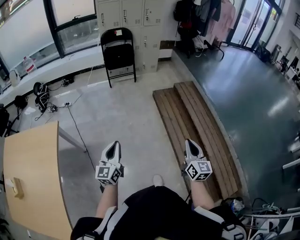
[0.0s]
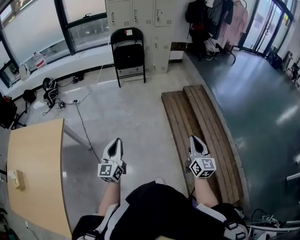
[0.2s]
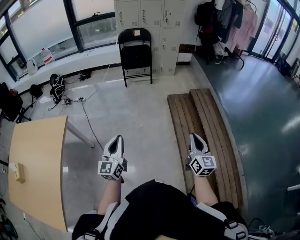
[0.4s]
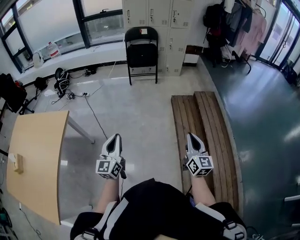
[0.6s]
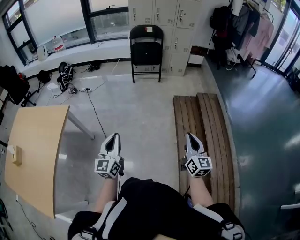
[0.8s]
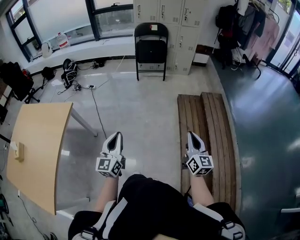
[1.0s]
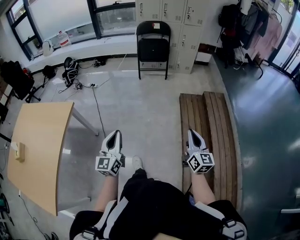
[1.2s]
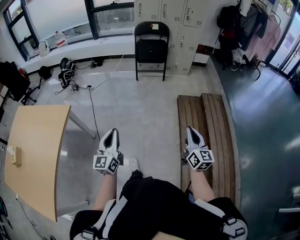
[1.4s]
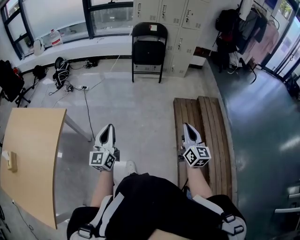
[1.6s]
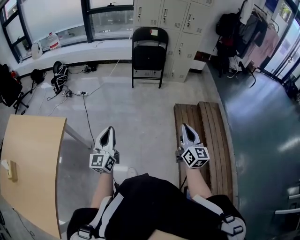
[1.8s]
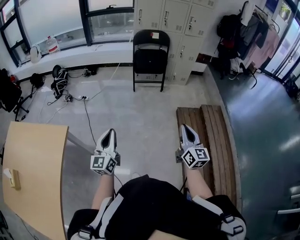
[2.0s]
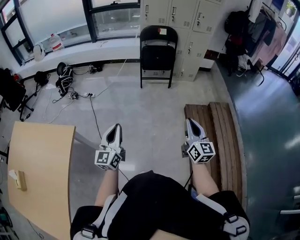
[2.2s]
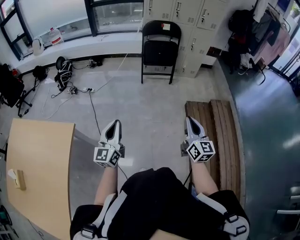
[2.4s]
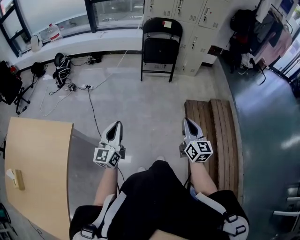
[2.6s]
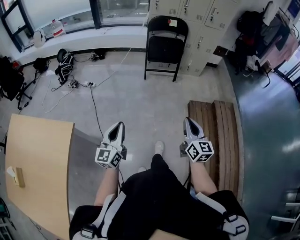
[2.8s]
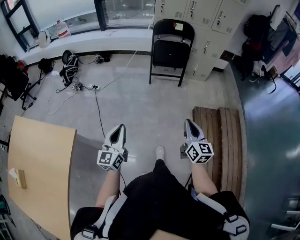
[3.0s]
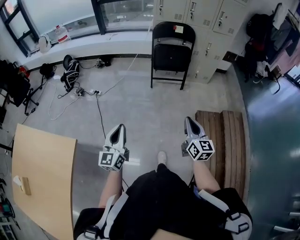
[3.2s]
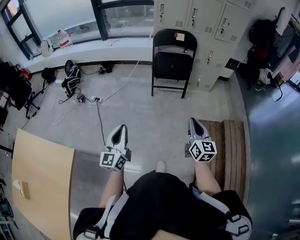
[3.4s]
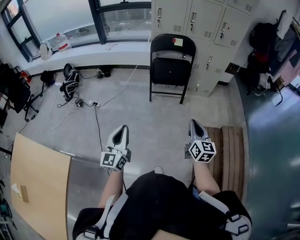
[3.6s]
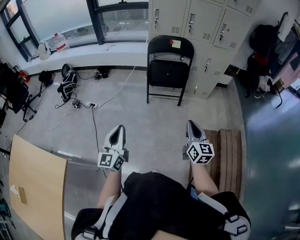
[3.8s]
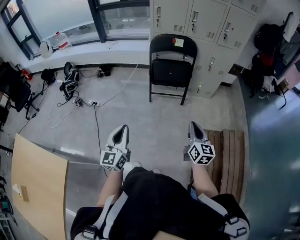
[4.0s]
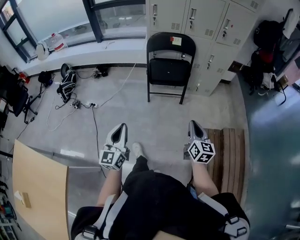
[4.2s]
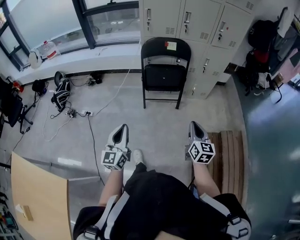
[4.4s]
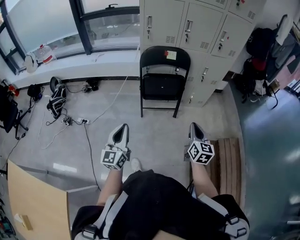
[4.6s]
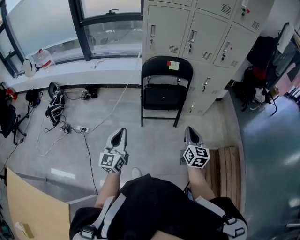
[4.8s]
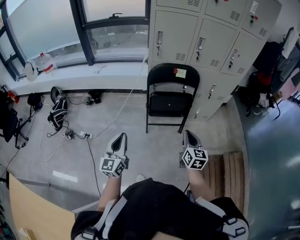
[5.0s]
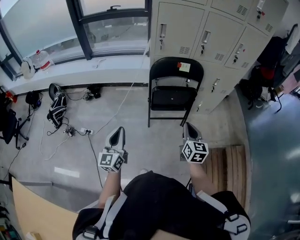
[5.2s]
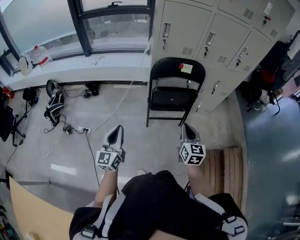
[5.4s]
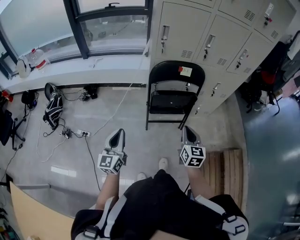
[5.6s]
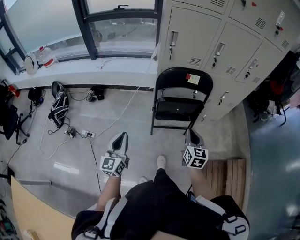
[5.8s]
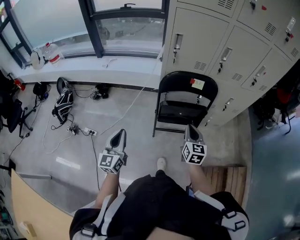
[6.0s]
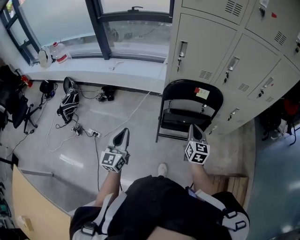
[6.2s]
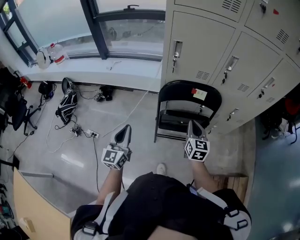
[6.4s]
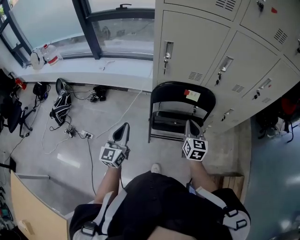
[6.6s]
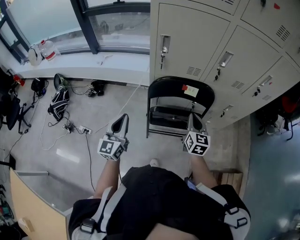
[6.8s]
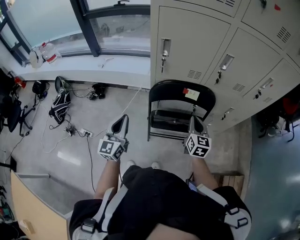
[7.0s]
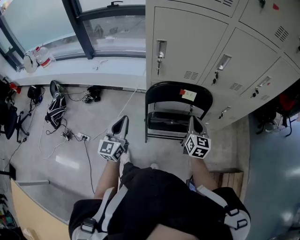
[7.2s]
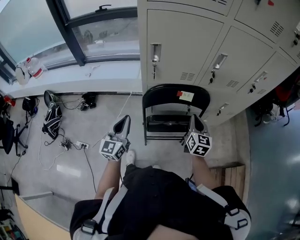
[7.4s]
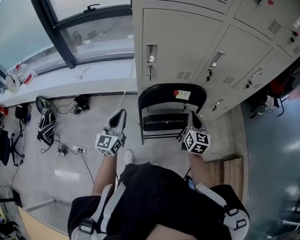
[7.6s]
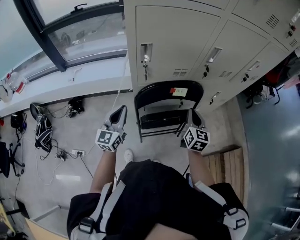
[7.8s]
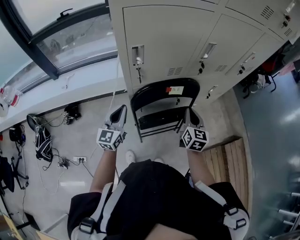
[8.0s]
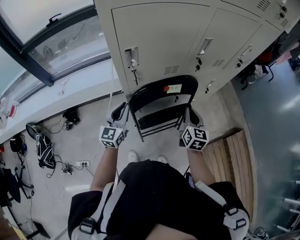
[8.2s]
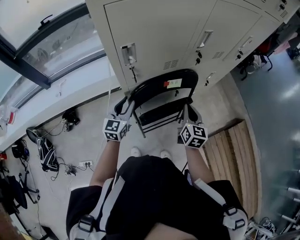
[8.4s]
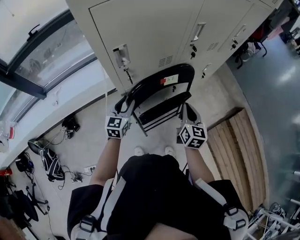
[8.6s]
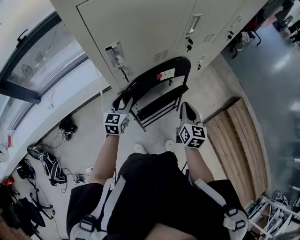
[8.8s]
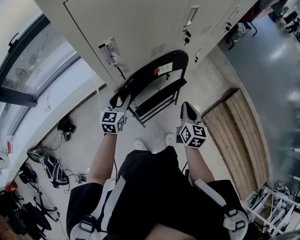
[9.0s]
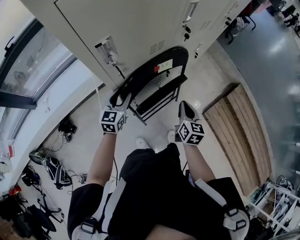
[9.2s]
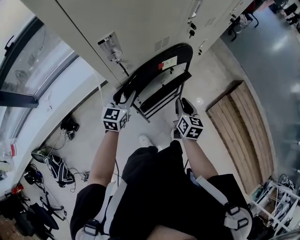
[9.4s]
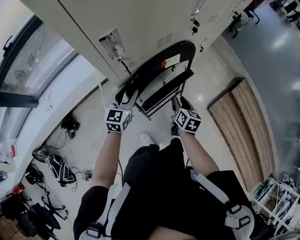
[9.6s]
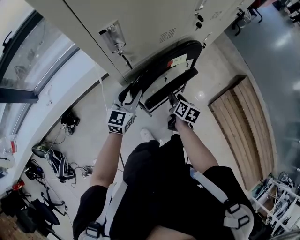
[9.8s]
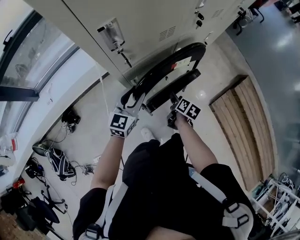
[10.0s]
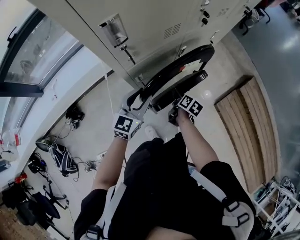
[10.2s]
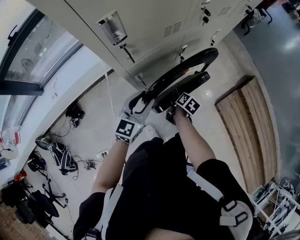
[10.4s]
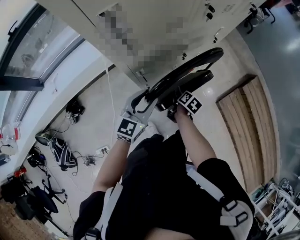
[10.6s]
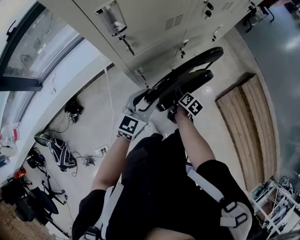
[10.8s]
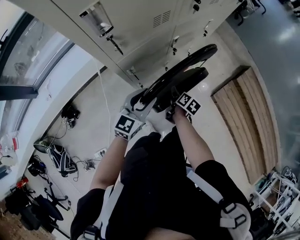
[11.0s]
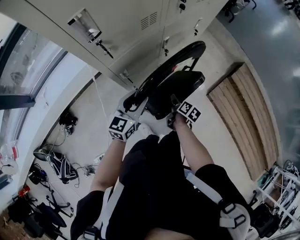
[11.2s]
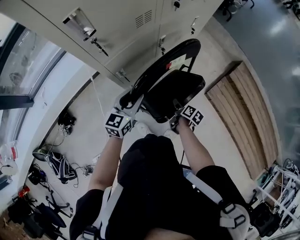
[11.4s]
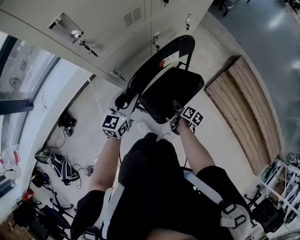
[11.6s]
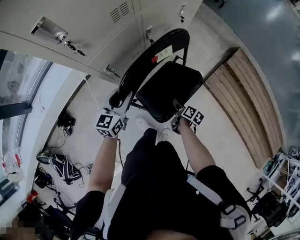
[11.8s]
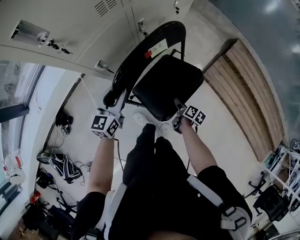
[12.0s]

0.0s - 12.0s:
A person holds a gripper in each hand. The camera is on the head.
0.0s - 1.6s: The left gripper is displaced forward by some 15 cm. Meanwhile the right gripper goes roughly 25 cm forward.
1.6s - 3.0s: The grippers both shift forward and to the left by about 25 cm.
3.0s - 4.4s: The grippers both shift forward by about 35 cm.
4.4s - 6.0s: Both grippers travel together forward and to the left, roughly 35 cm.
6.0s - 7.6s: The right gripper is displaced forward and to the right by about 20 cm. The left gripper moves forward, roughly 25 cm.
7.6s - 9.0s: The left gripper changes place by approximately 20 cm, rotates roughly 40 degrees, and opens its fingers. The right gripper moves downward, about 5 cm, and swivels roughly 30 degrees.
9.0s - 10.4s: The left gripper is displaced to the right and backward by some 10 cm, while the right gripper goes roughly 20 cm downward, swivels about 50 degrees, and opens its fingers.
10.4s - 12.0s: The left gripper shifts some 5 cm downward. The right gripper is displaced to the right, backward and downward by approximately 25 cm.

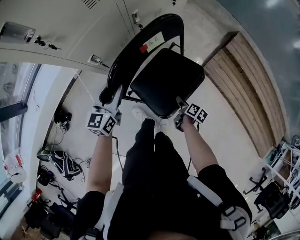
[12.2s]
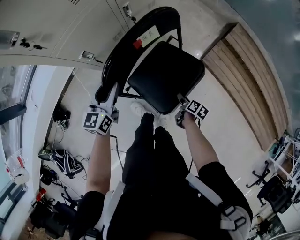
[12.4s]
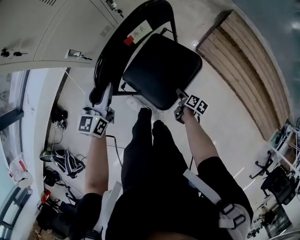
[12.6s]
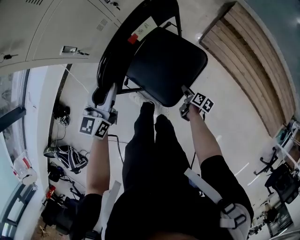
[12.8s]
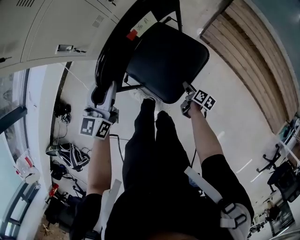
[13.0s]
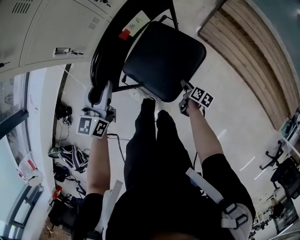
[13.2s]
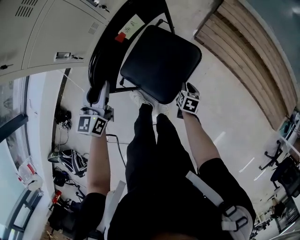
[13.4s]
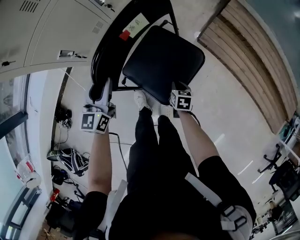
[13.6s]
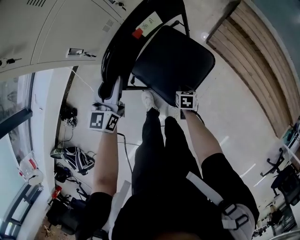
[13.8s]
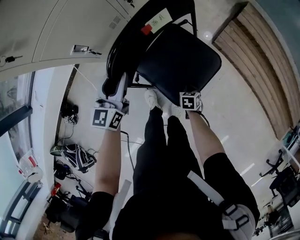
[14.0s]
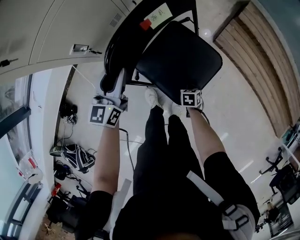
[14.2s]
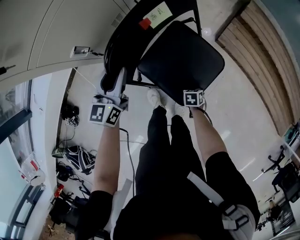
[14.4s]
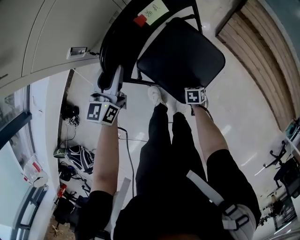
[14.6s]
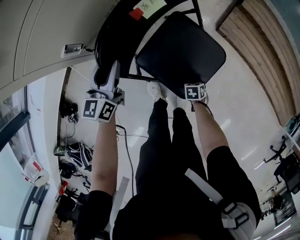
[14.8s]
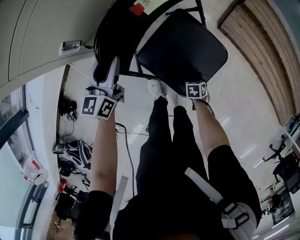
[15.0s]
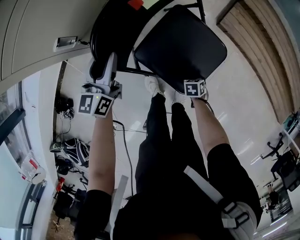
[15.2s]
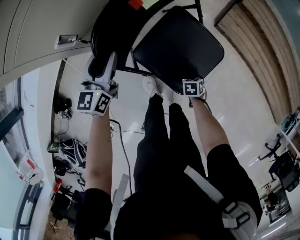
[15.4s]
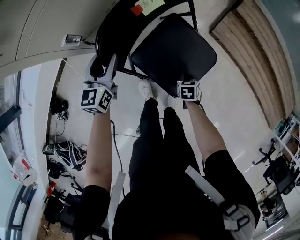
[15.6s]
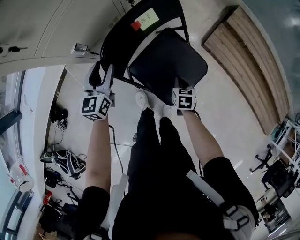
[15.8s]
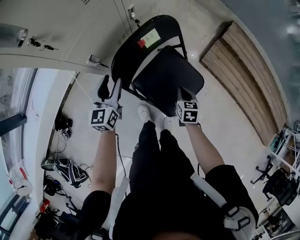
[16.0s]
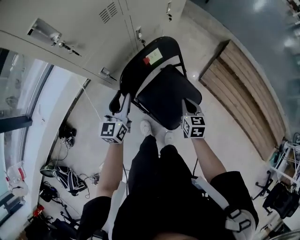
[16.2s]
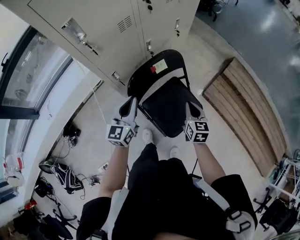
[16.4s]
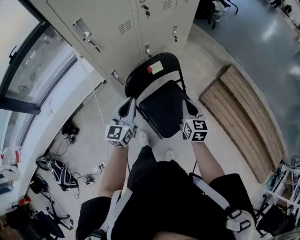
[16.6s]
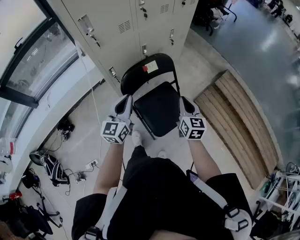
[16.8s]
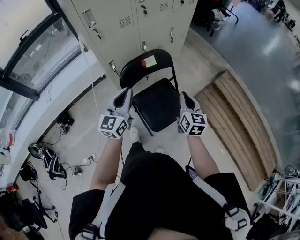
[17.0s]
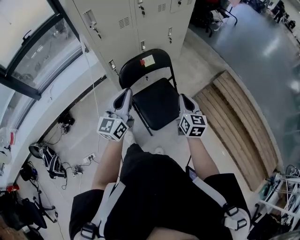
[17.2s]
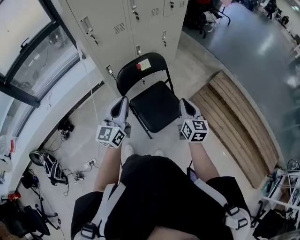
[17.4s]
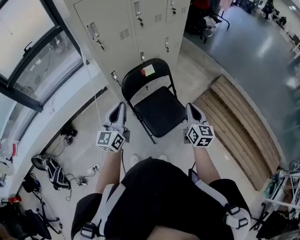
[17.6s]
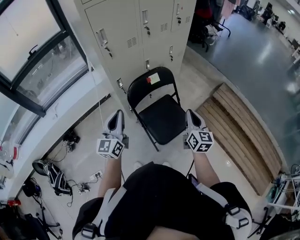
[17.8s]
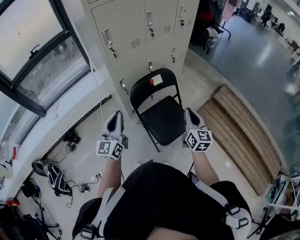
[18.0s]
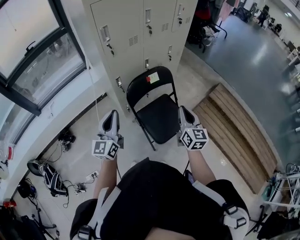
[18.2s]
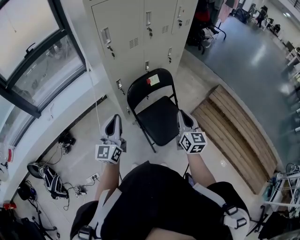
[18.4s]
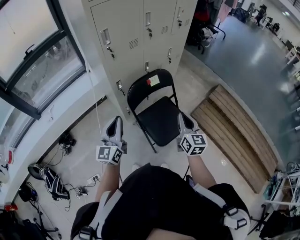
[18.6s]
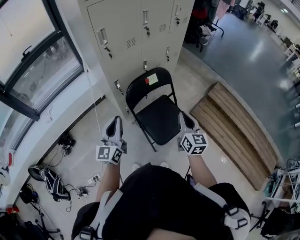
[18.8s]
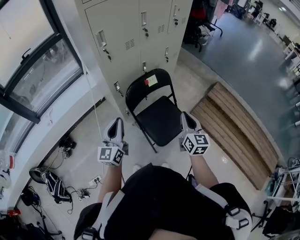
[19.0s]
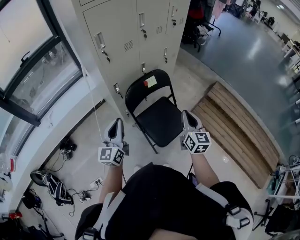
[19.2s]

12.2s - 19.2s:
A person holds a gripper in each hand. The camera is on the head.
12.2s - 13.6s: The right gripper reaches some 10 cm to the right, then returns, changes its angle by some 40 degrees, and closes; the left gripper travels to the right by roughly 5 cm.
13.6s - 15.0s: The right gripper goes roughly 15 cm downward, and swivels some 30 degrees, while the left gripper ends up approximately 15 cm from where it was.
15.0s - 16.4s: The left gripper shifts roughly 20 cm upward, and closes; the right gripper goes some 40 cm upward, and tilts its fingers approximately 50 degrees upward.
16.4s - 17.8s: The right gripper shifts some 20 cm upward and backward, and changes its angle by roughly 20 degrees, while the left gripper goes about 20 cm backward and upward.

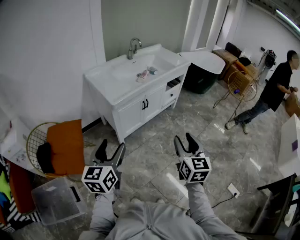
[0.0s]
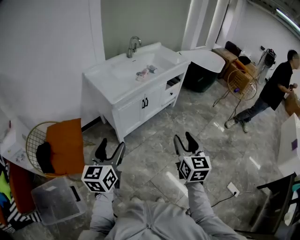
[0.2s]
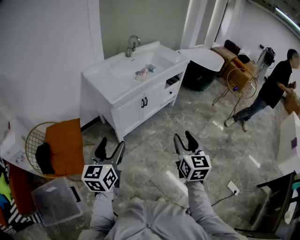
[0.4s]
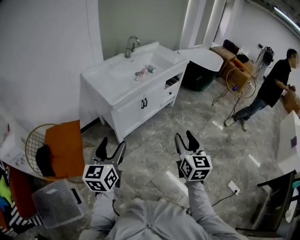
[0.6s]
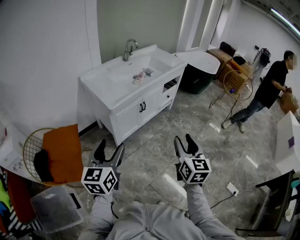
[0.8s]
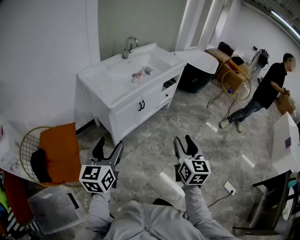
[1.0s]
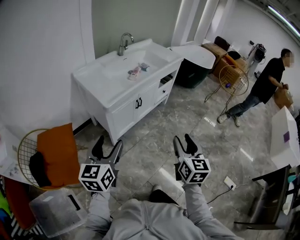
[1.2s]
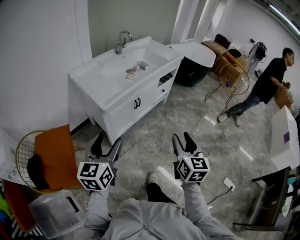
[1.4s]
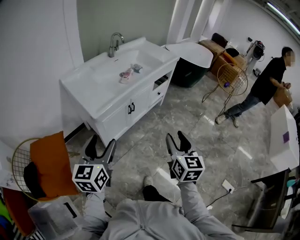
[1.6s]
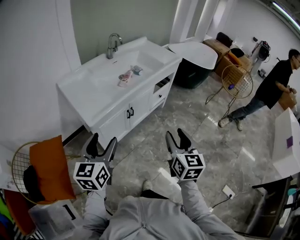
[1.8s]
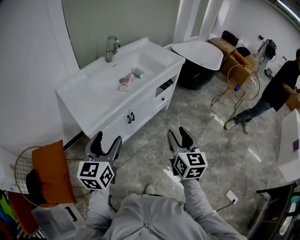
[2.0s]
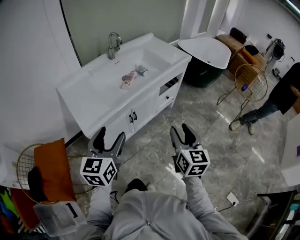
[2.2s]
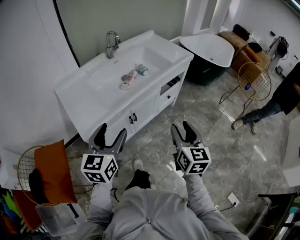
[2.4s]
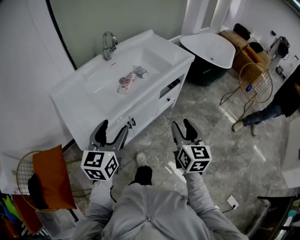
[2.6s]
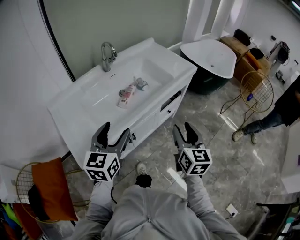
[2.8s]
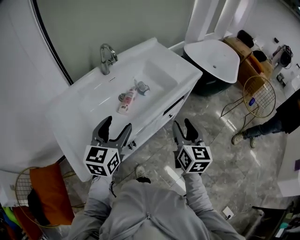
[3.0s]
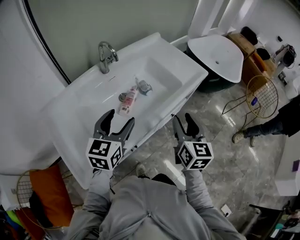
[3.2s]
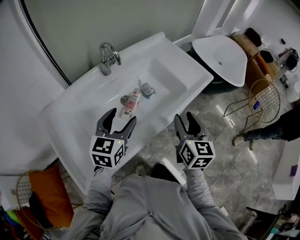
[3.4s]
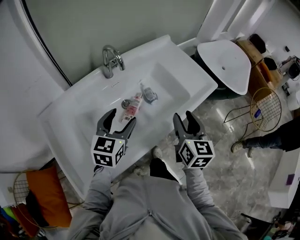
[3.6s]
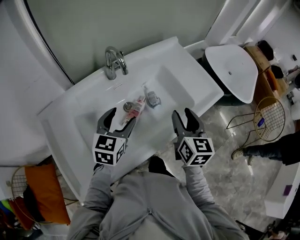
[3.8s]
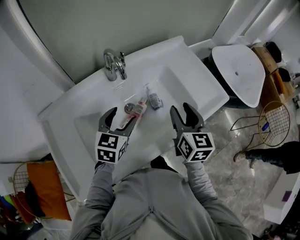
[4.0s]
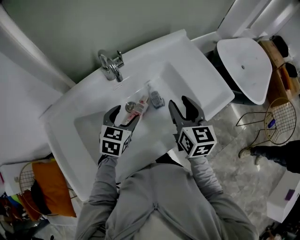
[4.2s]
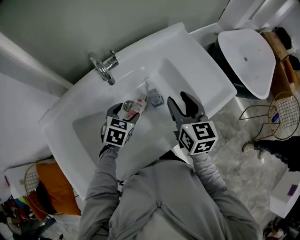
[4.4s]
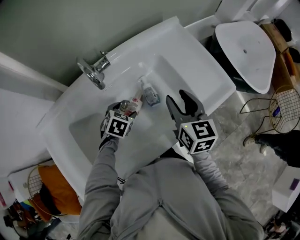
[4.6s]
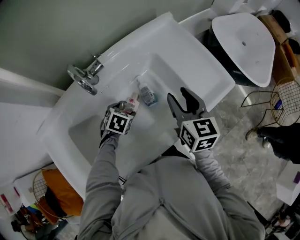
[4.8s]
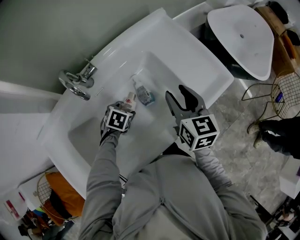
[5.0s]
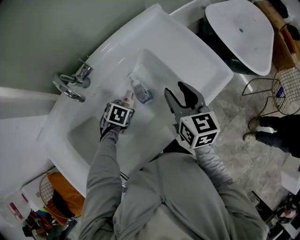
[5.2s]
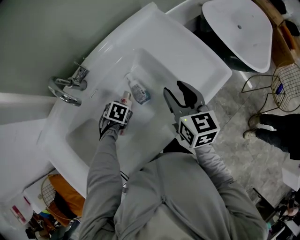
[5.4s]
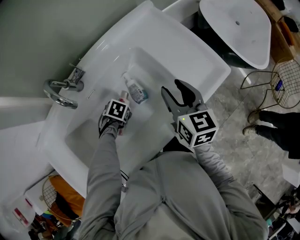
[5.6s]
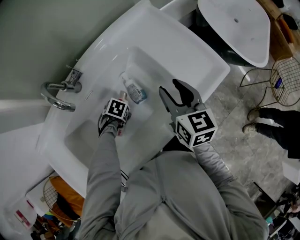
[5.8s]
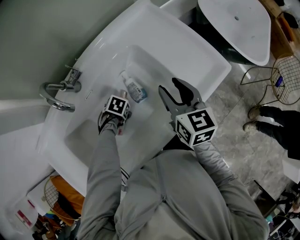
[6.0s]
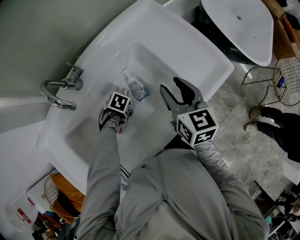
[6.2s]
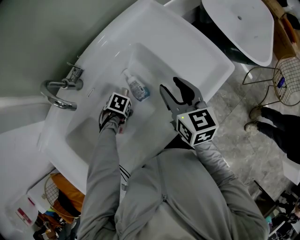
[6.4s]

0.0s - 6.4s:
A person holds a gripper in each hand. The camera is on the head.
0.0s - 1.6s: Both grippers travel together forward, approximately 15 cm.
1.6s - 3.2s: Both grippers are carried forward, roughly 50 cm.
3.2s - 4.8s: The right gripper moves forward, about 30 cm, while the left gripper is displaced downward and forward by approximately 35 cm, and tilts its fingers about 50 degrees downward.
4.8s - 6.4s: The left gripper shifts roughly 10 cm downward, and turns by approximately 30 degrees.
